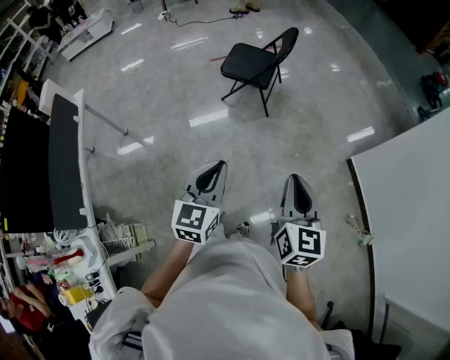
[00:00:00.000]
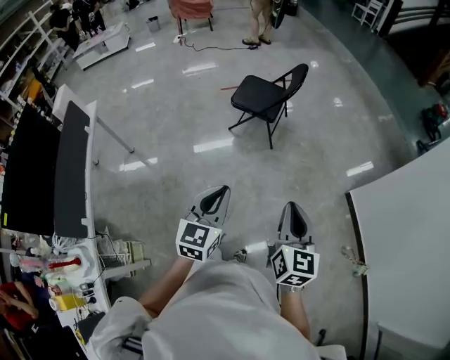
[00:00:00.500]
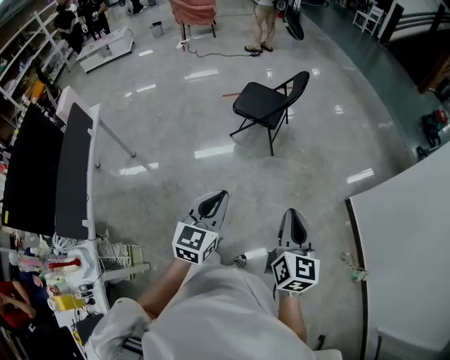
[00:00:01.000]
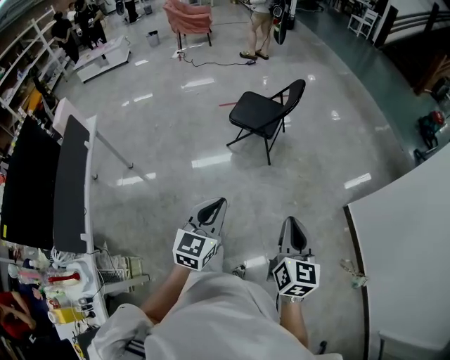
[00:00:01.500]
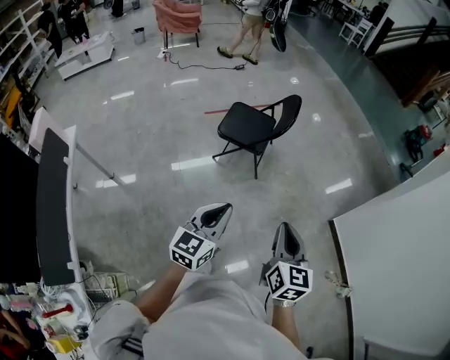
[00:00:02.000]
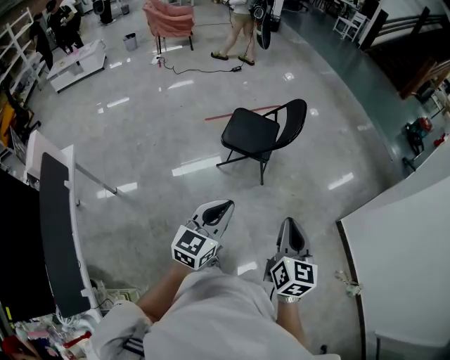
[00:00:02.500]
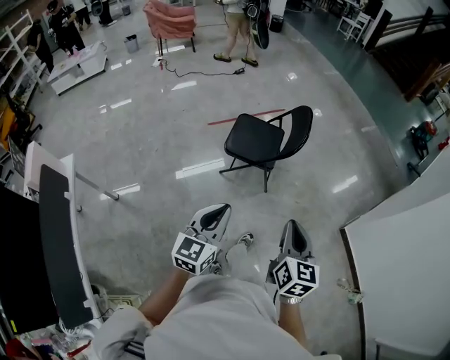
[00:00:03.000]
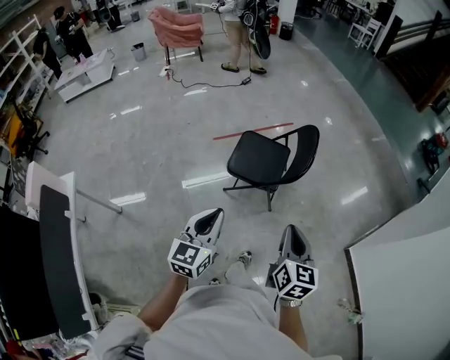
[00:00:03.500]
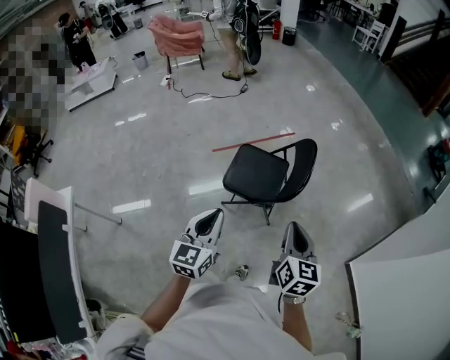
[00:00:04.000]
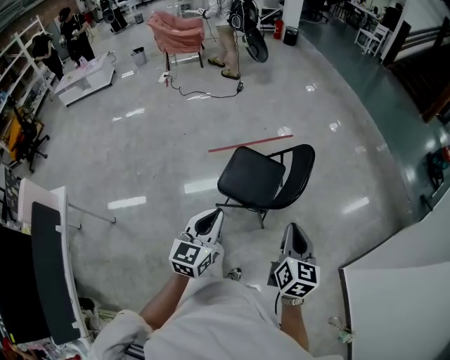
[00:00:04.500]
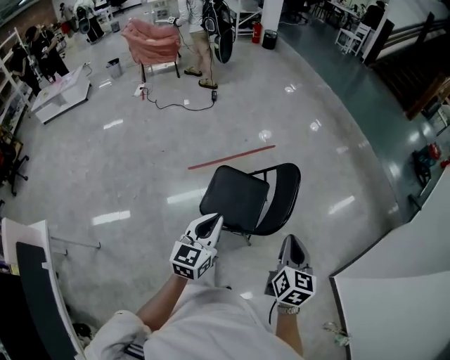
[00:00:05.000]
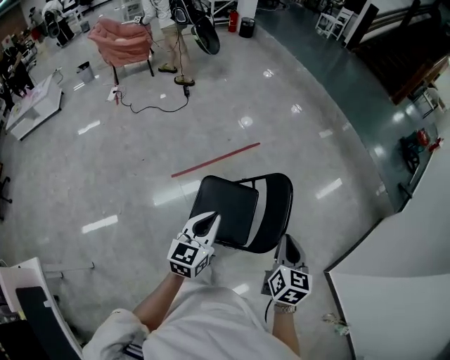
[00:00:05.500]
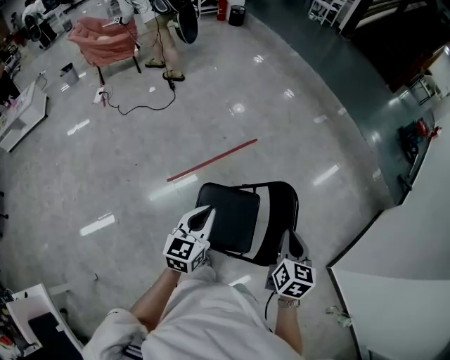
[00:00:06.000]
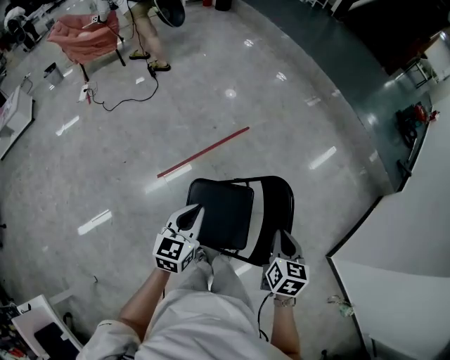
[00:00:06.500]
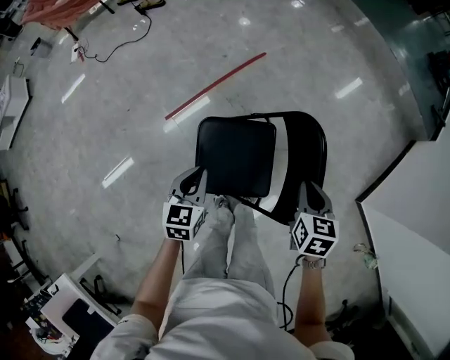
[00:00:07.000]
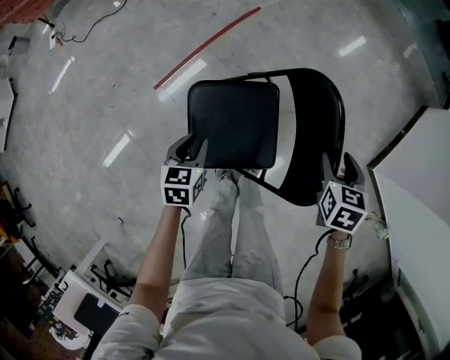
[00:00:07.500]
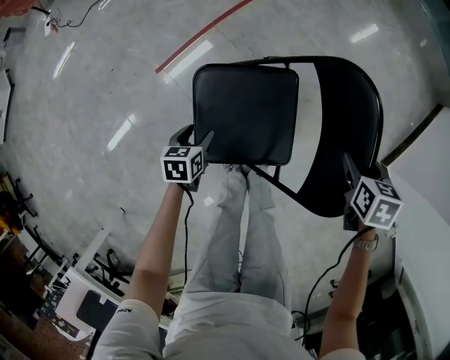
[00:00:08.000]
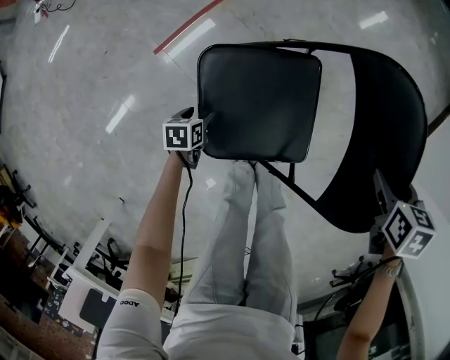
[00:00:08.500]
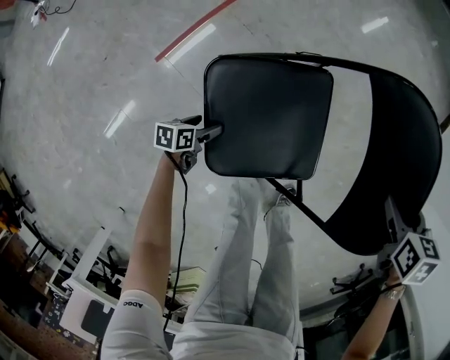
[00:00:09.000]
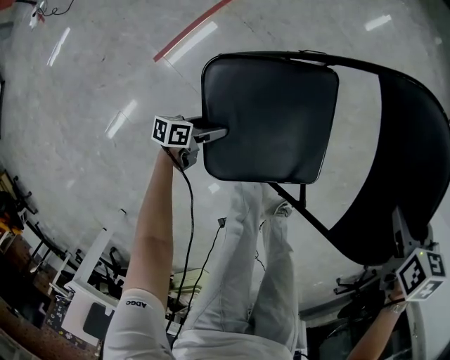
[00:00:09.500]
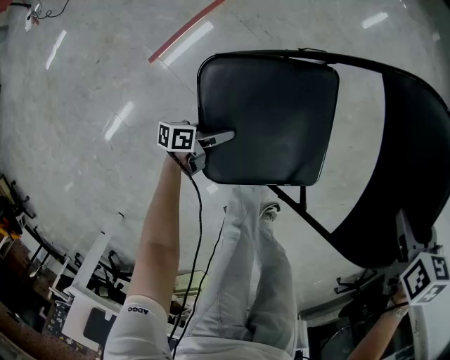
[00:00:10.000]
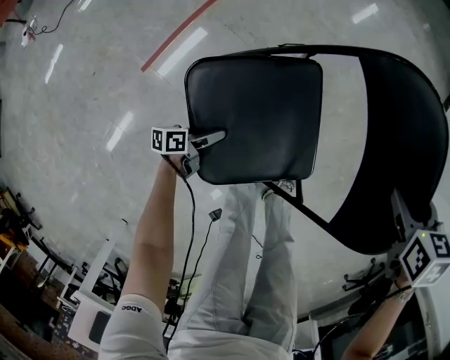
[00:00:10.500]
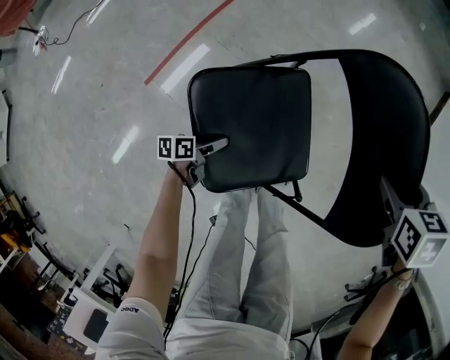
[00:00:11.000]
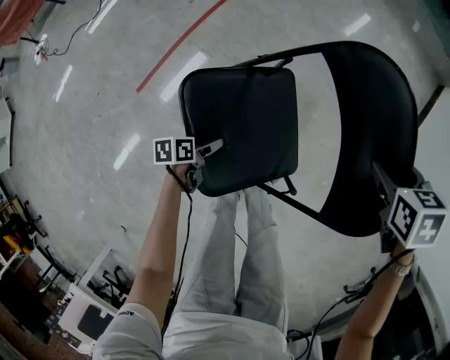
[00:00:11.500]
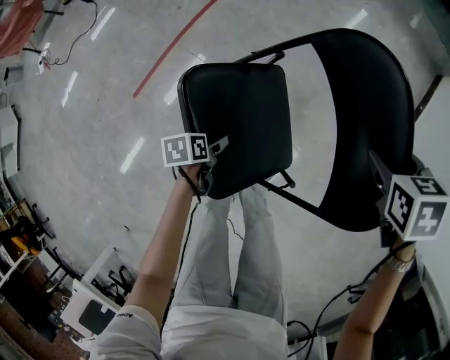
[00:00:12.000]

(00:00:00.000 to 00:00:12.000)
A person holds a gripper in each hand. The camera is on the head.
00:00:00.000 - 00:00:02.000: Both grippers travel together forward and to the left, approximately 15 cm.
00:00:02.000 - 00:00:04.000: Both grippers move forward, approximately 40 cm.
00:00:04.000 - 00:00:06.000: The two grippers go roughly 40 cm forward. The right gripper rotates some 20 degrees.
00:00:06.000 - 00:00:08.000: The two grippers go about 40 cm downward. The right gripper angles its fingers downward, by approximately 40 degrees, and opens its fingers. Meanwhile the left gripper tips its fingers downward by approximately 40 degrees, and opens its fingers.
00:00:08.000 - 00:00:10.000: The left gripper shifts about 20 cm downward, angles its fingers upward, by roughly 30 degrees, and opens.
00:00:10.000 - 00:00:12.000: The right gripper moves some 20 cm, while the left gripper shifts by some 25 cm, and angles its fingers downward, by some 40 degrees.

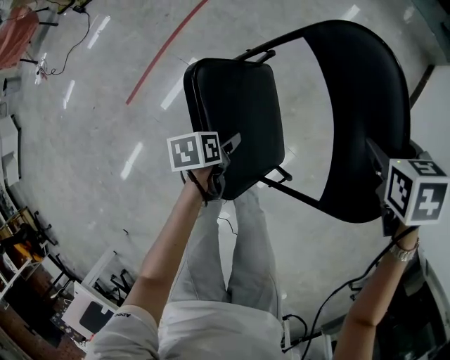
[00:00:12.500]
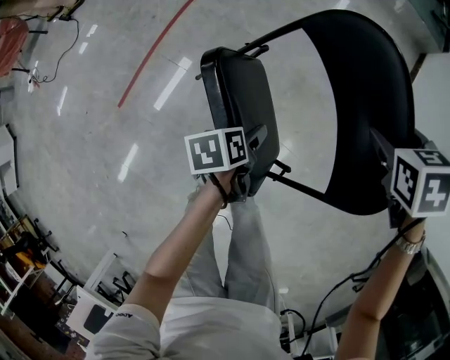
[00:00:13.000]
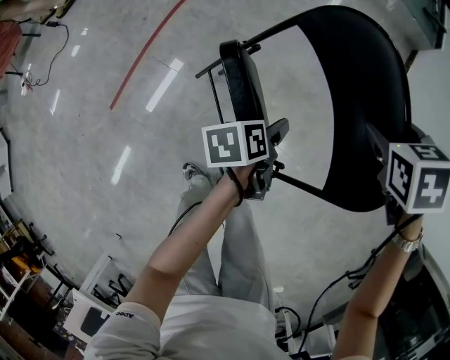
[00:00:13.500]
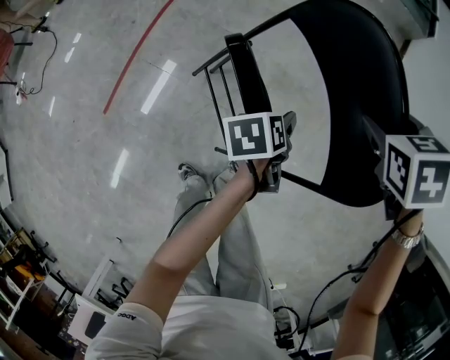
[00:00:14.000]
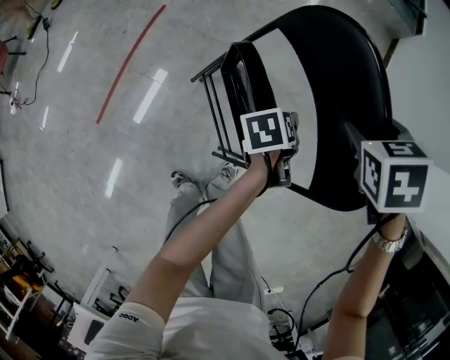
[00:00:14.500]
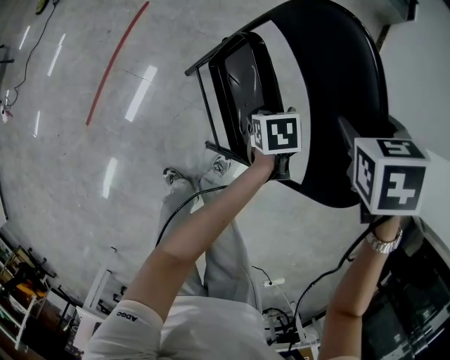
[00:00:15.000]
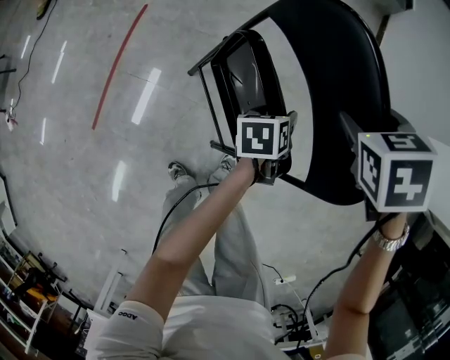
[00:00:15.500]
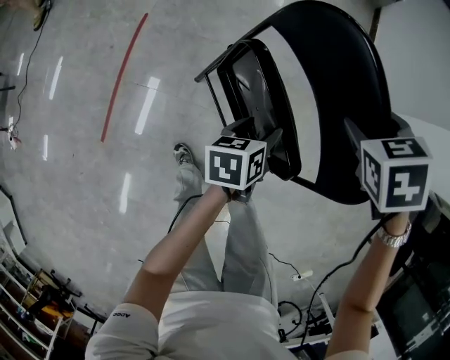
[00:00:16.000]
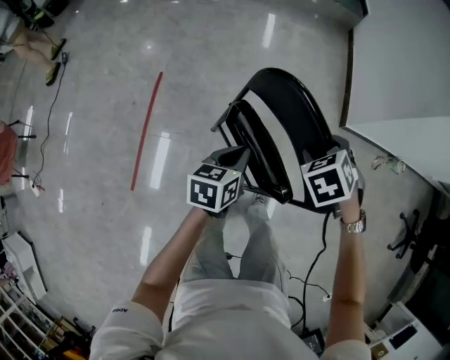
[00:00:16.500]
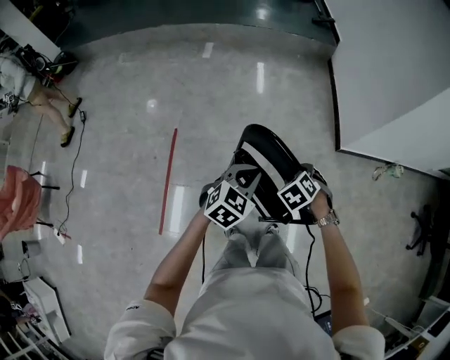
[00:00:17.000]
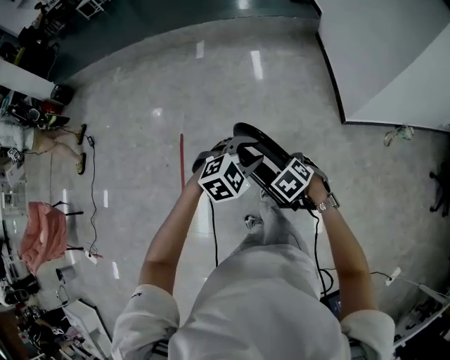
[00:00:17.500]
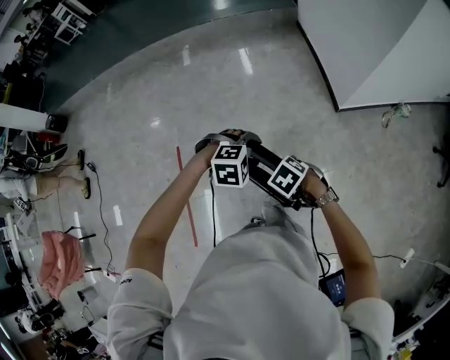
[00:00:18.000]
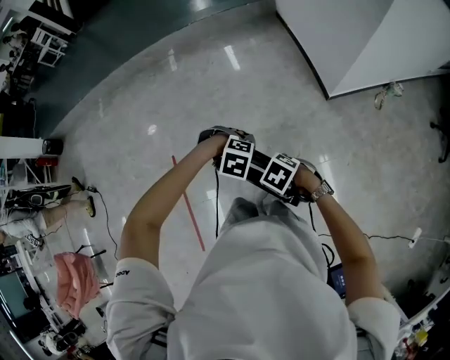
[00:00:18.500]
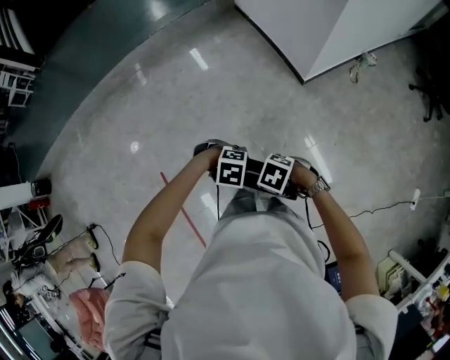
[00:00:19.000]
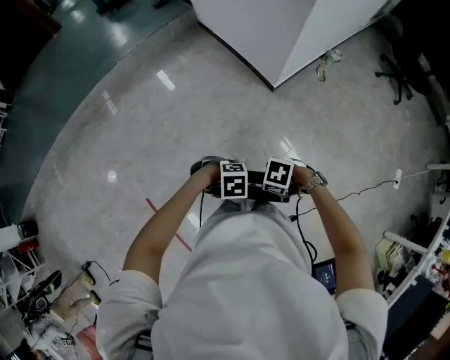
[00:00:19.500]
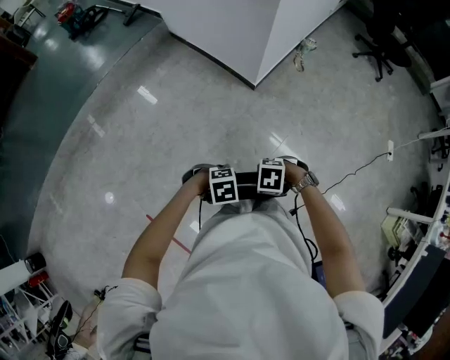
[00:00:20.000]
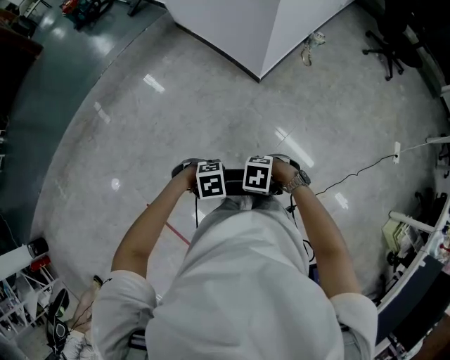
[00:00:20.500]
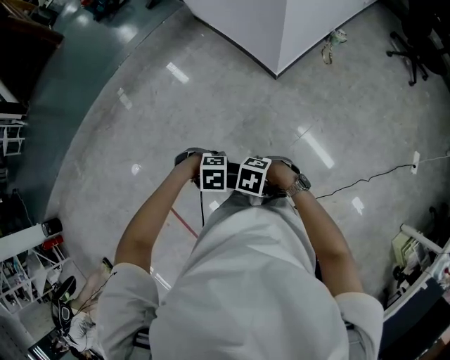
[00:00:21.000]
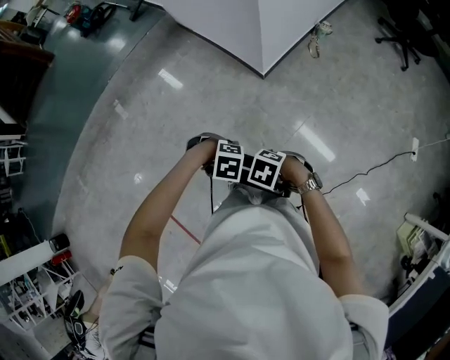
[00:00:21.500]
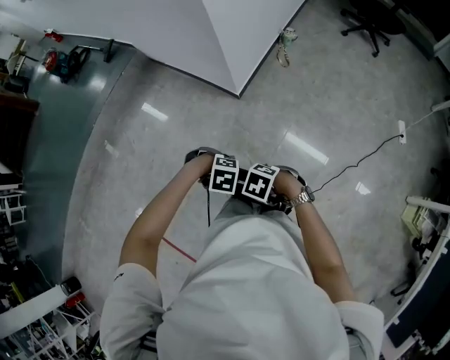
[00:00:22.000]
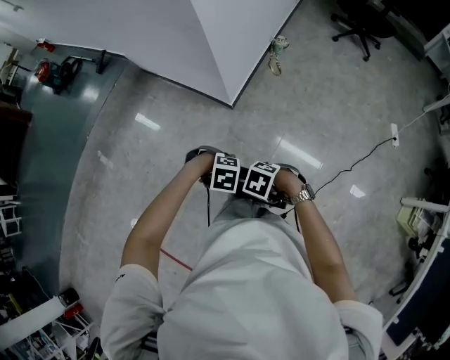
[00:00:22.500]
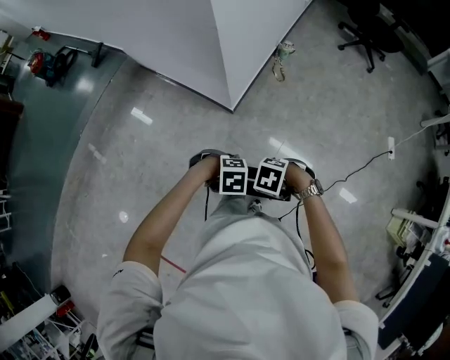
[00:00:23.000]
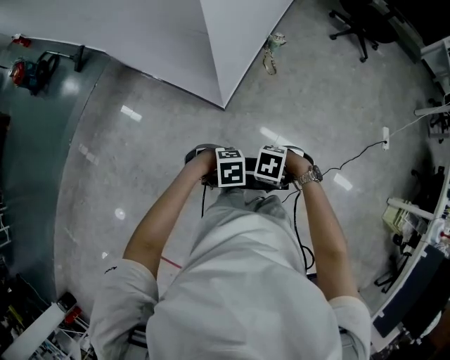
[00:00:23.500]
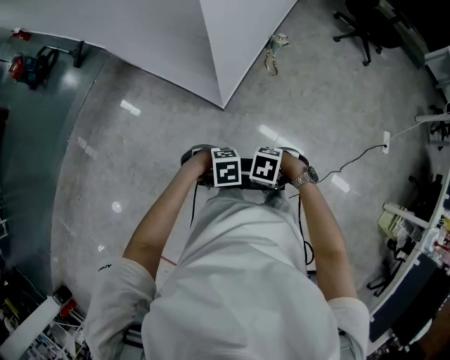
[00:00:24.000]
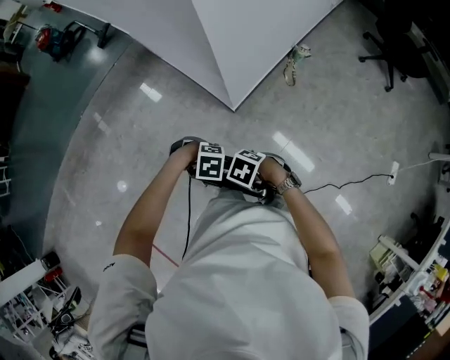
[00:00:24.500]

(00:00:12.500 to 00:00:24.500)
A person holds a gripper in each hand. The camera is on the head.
00:00:12.500 - 00:00:14.500: The left gripper changes place by some 25 cm.
00:00:14.500 - 00:00:16.500: The left gripper travels upward, to the left and backward by about 25 cm, rolls clockwise, seen from behind, by approximately 40 degrees, and closes up. The right gripper heads backward and to the left, covering roughly 15 cm.
00:00:16.500 - 00:00:18.500: The right gripper turns by some 30 degrees, and closes its fingers. Meanwhile the left gripper changes place by roughly 15 cm, rolls clockwise, seen from behind, by roughly 110 degrees, and opens up.
00:00:18.500 - 00:00:20.500: The grippers stay close to where they were, moving slightly.
00:00:20.500 - 00:00:22.500: The left gripper changes place by approximately 25 cm, and turns by about 30 degrees, while the right gripper moves roughly 25 cm, and swivels roughly 30 degrees.
00:00:22.500 - 00:00:24.500: The left gripper ends up about 20 cm from where it was. Meanwhile the right gripper moves approximately 25 cm.

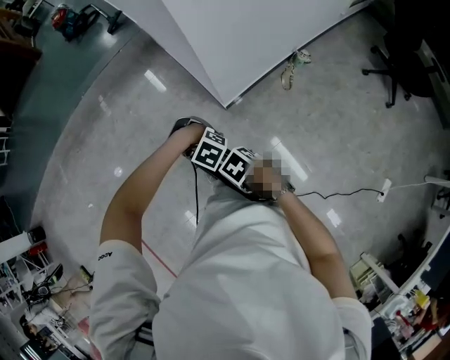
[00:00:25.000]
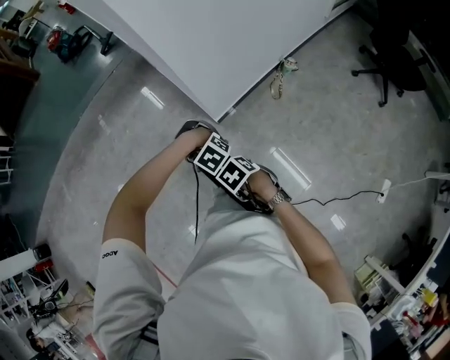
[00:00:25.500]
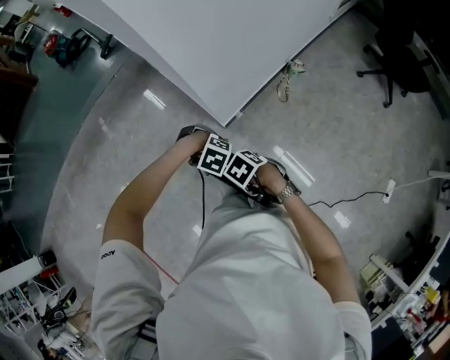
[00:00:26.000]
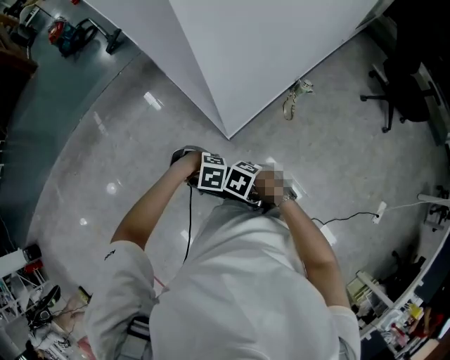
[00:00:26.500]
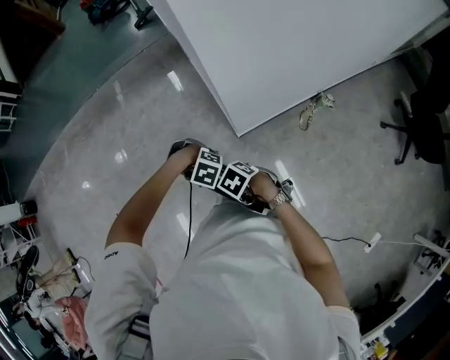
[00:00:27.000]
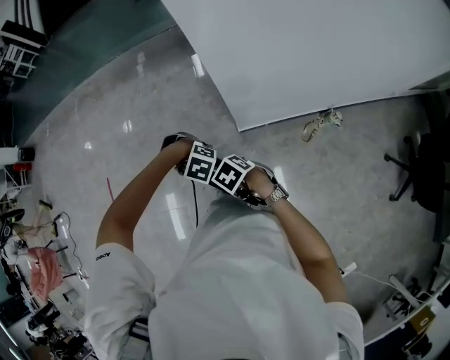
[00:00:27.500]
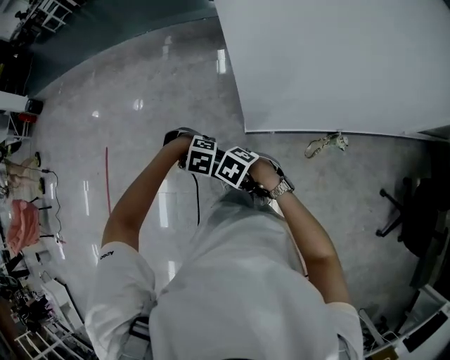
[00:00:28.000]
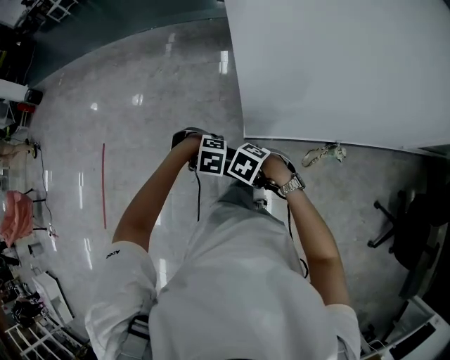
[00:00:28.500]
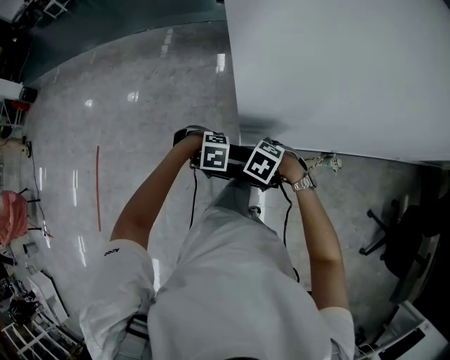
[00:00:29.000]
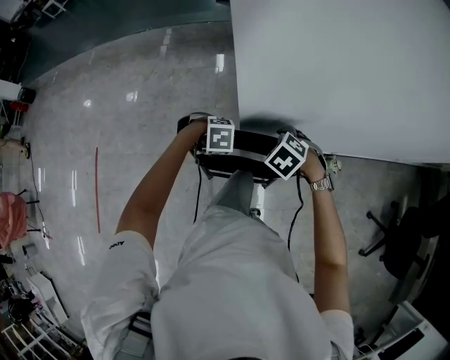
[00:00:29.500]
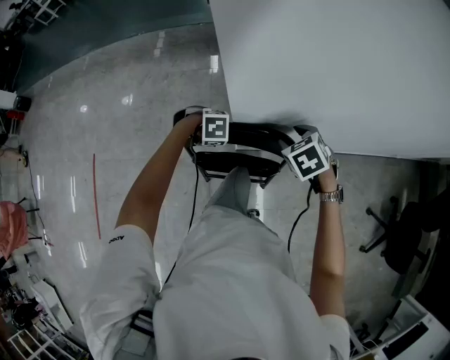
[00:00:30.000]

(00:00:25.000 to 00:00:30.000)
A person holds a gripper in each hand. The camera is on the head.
00:00:25.000 - 00:00:27.500: The right gripper changes place by roughly 20 cm, and changes its angle by roughly 30 degrees. Meanwhile the left gripper changes place by roughly 15 cm, and changes its angle by about 30 degrees.
00:00:27.500 - 00:00:30.000: The right gripper moves approximately 30 cm, swivels approximately 30 degrees, and opens; the left gripper changes place by roughly 20 cm, and rotates roughly 30 degrees.
